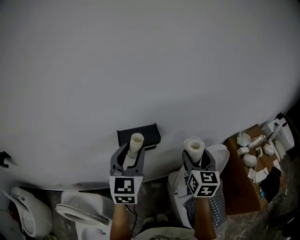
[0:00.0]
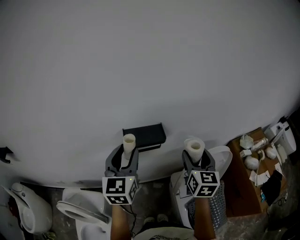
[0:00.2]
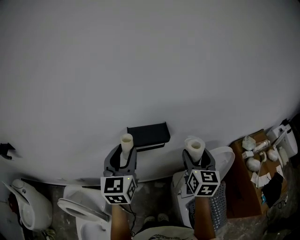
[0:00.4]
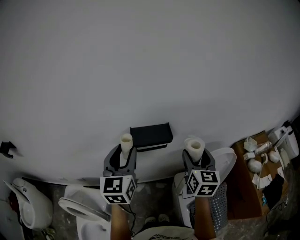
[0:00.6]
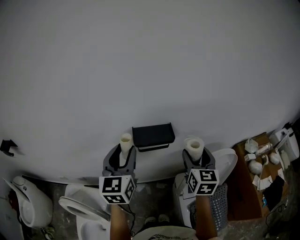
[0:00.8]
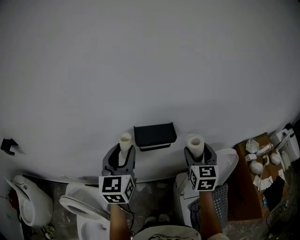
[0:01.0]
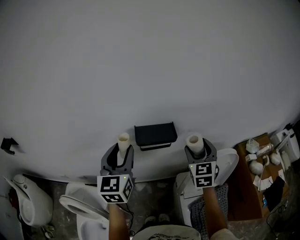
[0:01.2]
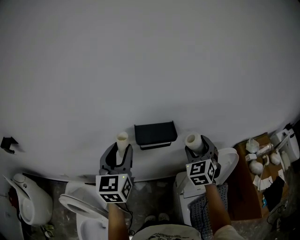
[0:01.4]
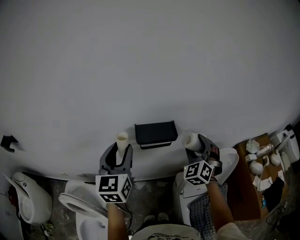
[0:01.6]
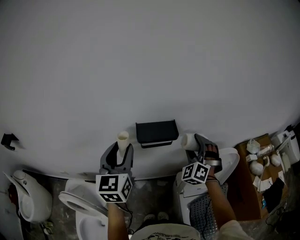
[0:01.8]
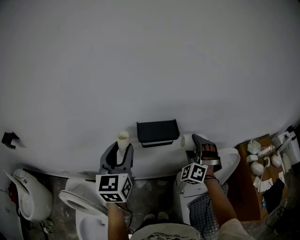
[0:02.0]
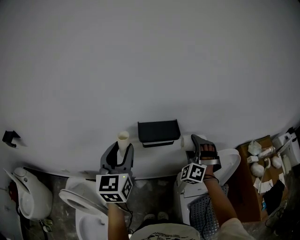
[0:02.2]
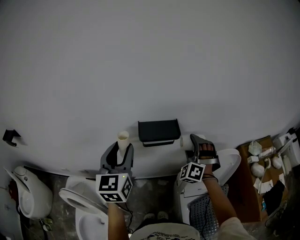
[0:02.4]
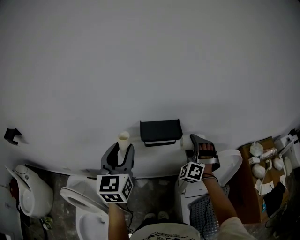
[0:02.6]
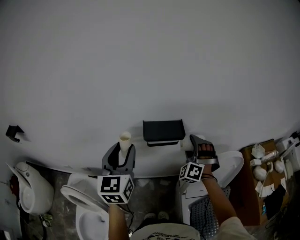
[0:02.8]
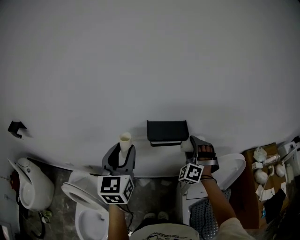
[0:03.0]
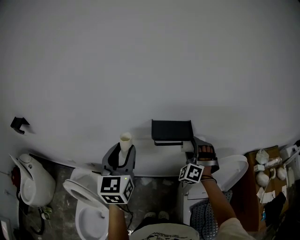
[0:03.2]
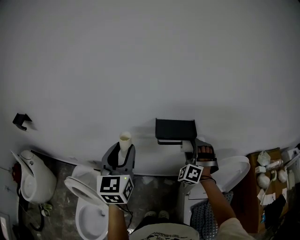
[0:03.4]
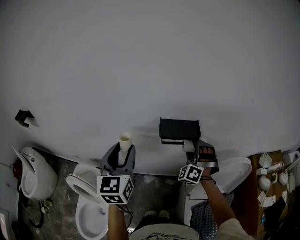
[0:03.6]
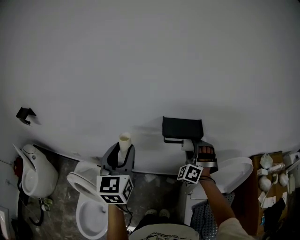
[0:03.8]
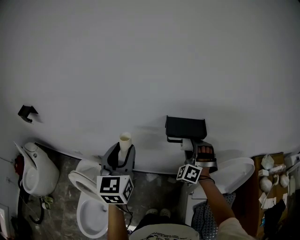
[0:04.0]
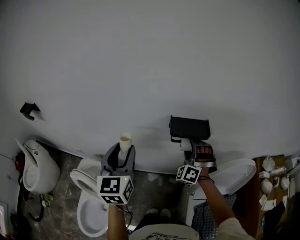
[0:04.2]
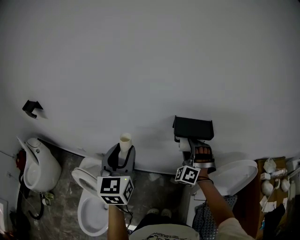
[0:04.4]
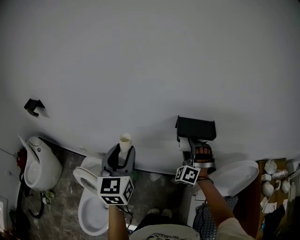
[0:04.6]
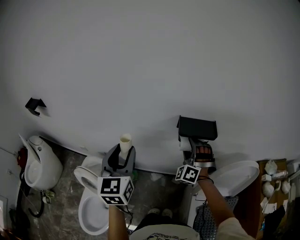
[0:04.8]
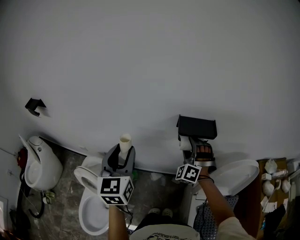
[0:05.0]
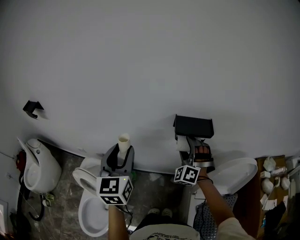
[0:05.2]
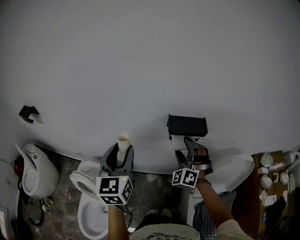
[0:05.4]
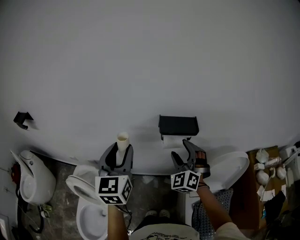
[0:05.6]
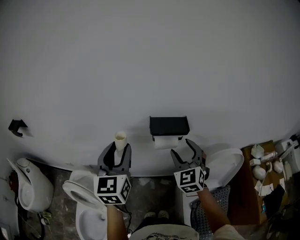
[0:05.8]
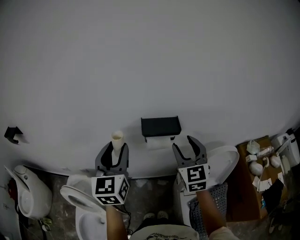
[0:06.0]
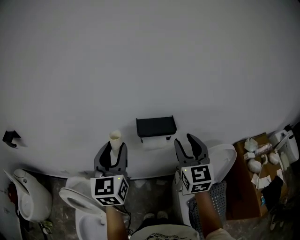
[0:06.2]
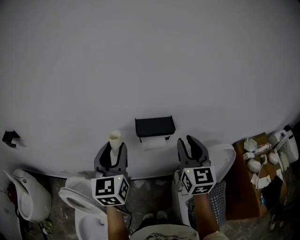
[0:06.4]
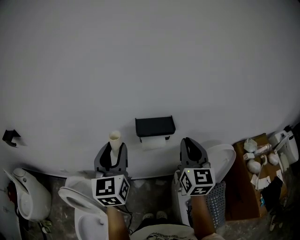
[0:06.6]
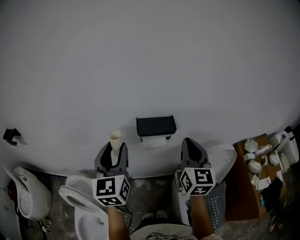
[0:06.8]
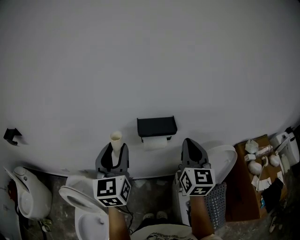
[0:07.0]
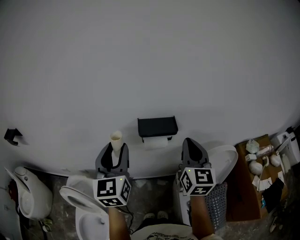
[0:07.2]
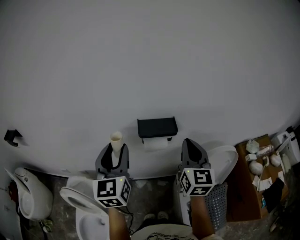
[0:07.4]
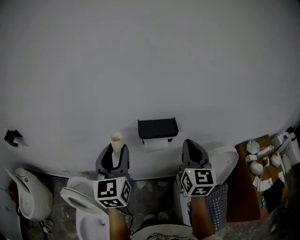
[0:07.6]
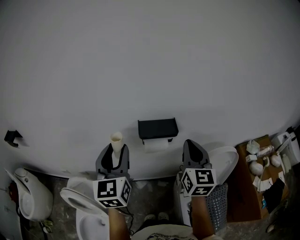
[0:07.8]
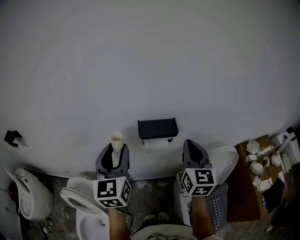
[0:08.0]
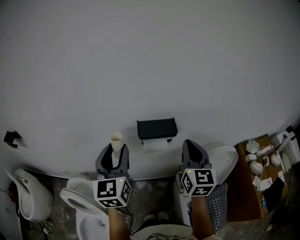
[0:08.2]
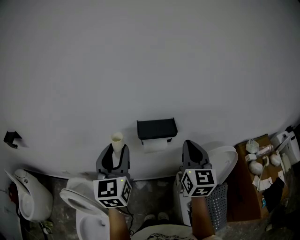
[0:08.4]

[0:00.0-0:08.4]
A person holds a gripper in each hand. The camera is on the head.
0:00.0 to 0:01.4: The right gripper moves to the left, roughly 5 cm, and rotates around the line of its fingers by approximately 40 degrees, counterclockwise from behind; the left gripper moves to the left, roughly 10 cm.
0:01.4 to 0:02.8: The right gripper moves downward, approximately 5 cm, and rolls counterclockwise, seen from behind, by about 40 degrees.
0:02.8 to 0:04.2: Both grippers travel together to the left, about 10 cm.
0:04.2 to 0:05.6: The right gripper shifts approximately 5 cm backward, and changes its angle by roughly 20 degrees.
0:05.6 to 0:07.0: The right gripper is displaced to the right and upward by some 15 cm, rolls clockwise, seen from behind, by approximately 60 degrees, and closes up. Meanwhile the left gripper heads to the right, covering roughly 5 cm.
0:07.0 to 0:08.4: Neither gripper changes place.

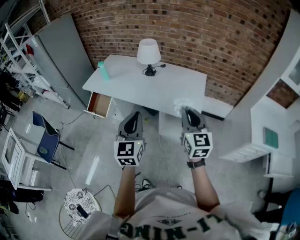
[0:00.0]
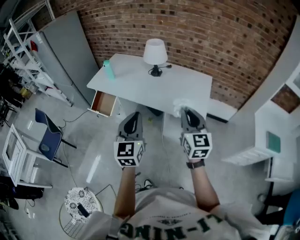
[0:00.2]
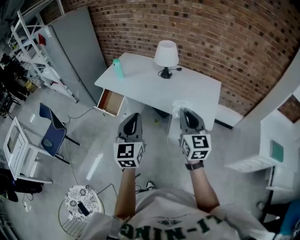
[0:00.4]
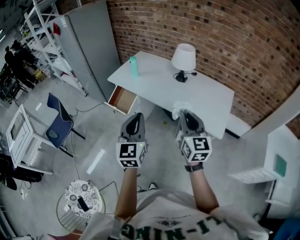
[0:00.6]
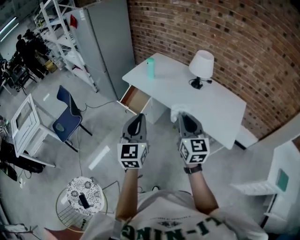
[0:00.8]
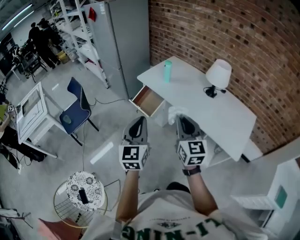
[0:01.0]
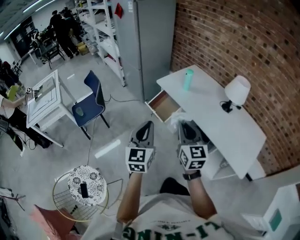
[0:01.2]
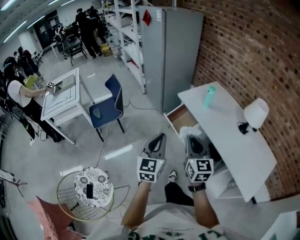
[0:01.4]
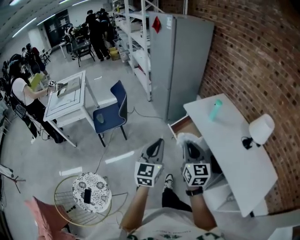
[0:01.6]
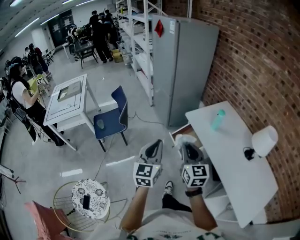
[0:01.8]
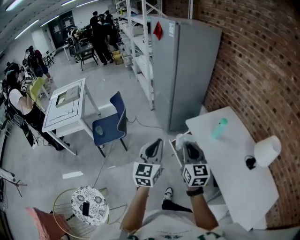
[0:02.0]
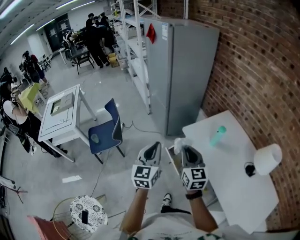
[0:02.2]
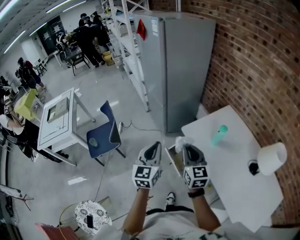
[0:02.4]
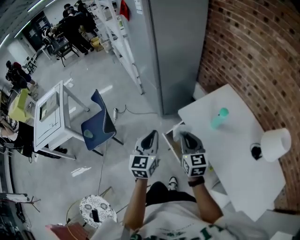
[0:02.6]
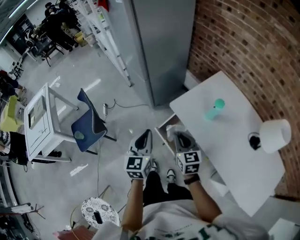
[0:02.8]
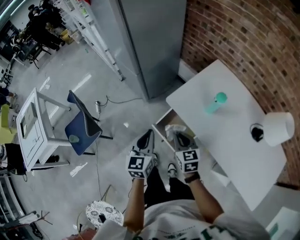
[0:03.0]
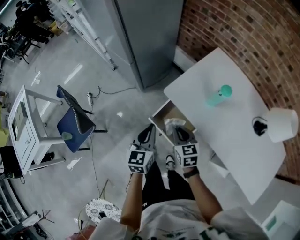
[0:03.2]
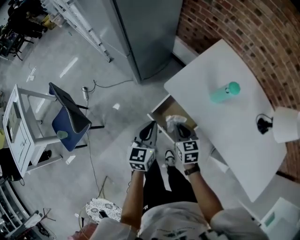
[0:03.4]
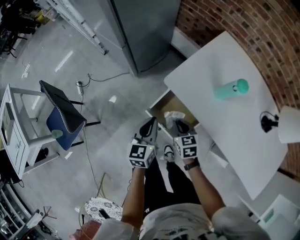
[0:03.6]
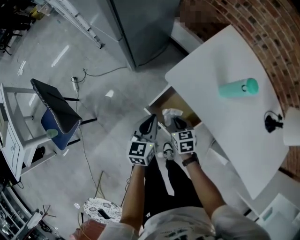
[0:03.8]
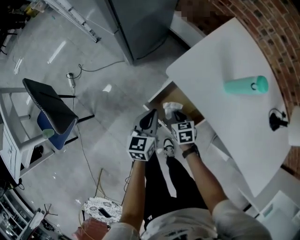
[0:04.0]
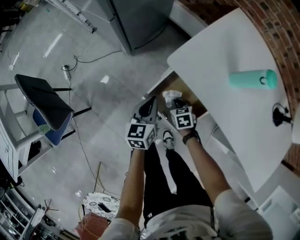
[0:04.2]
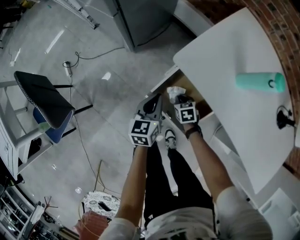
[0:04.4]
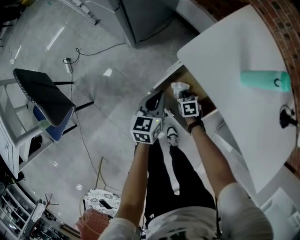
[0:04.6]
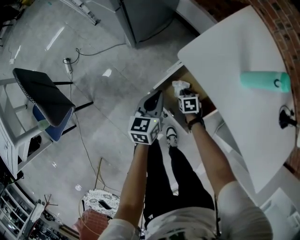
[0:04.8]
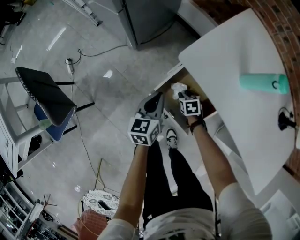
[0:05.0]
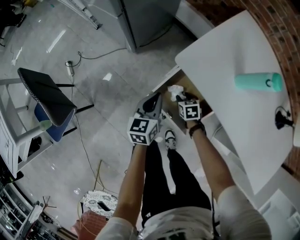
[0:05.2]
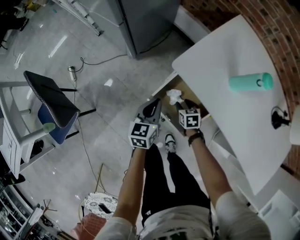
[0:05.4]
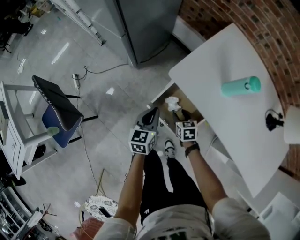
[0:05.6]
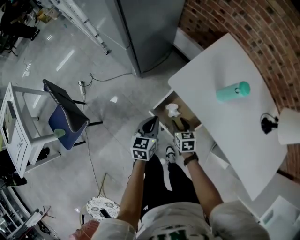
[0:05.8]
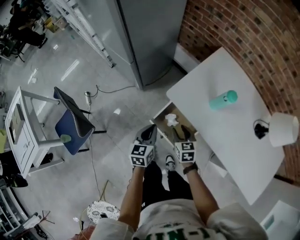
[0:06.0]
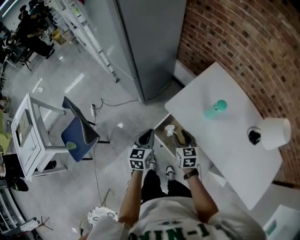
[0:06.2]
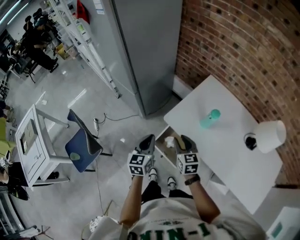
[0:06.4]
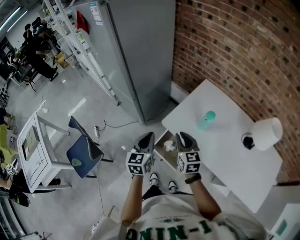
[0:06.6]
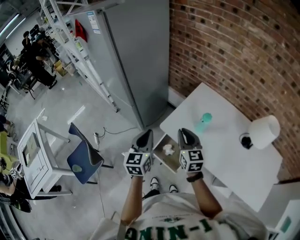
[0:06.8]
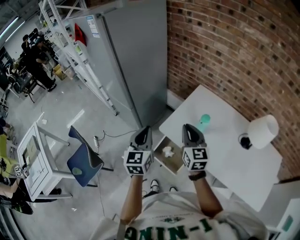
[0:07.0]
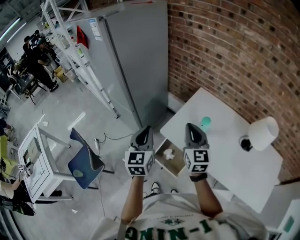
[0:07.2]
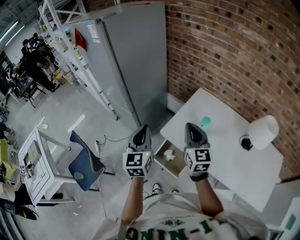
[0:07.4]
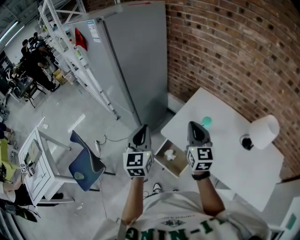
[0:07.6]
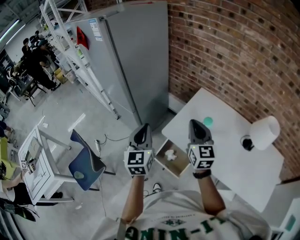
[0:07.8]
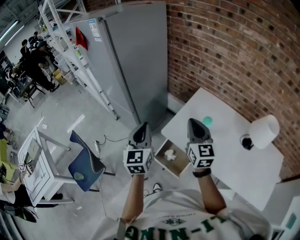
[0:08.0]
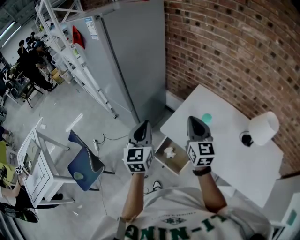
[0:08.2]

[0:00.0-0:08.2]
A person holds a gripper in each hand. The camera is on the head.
0:00.0 to 0:01.6: The two grippers travel together, approximately 50 cm. The right gripper rotates roughly 40 degrees; the left gripper changes its angle by approximately 40 degrees.
0:01.6 to 0:03.2: Both grippers move forward and downward, approximately 50 cm. The left gripper turns by approximately 30 degrees, while the right gripper turns by roughly 30 degrees.
0:03.2 to 0:05.0: The two grippers go about 35 cm downward. The right gripper points its fingers roughly 30 degrees further downward, and opens its fingers.
0:05.0 to 0:06.6: Both grippers move upward, approximately 50 cm. The right gripper tips its fingers upward by some 50 degrees.
0:06.6 to 0:08.2: Both grippers travel together upward, roughly 15 cm.

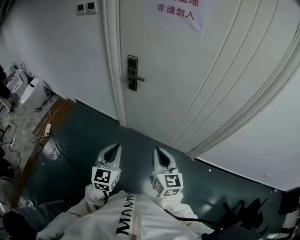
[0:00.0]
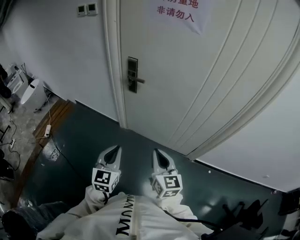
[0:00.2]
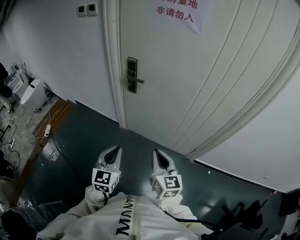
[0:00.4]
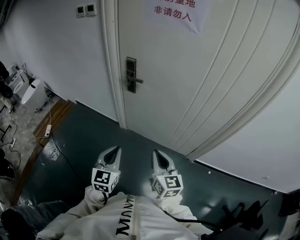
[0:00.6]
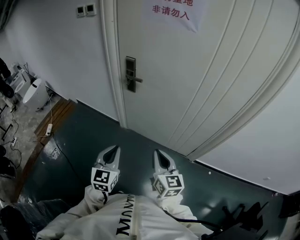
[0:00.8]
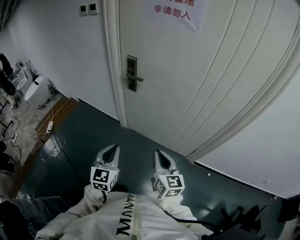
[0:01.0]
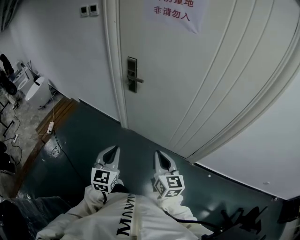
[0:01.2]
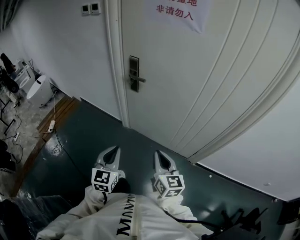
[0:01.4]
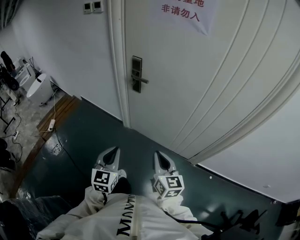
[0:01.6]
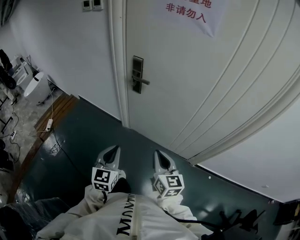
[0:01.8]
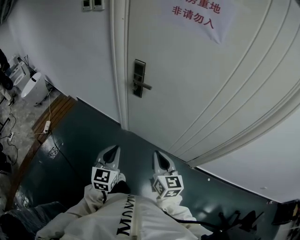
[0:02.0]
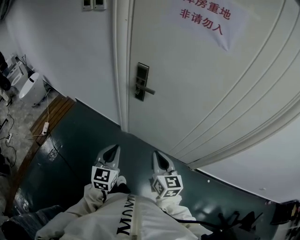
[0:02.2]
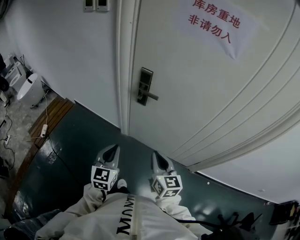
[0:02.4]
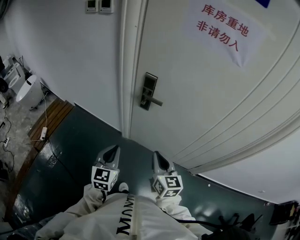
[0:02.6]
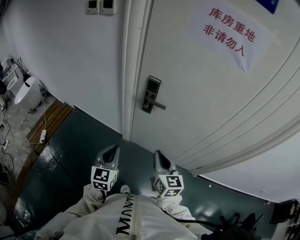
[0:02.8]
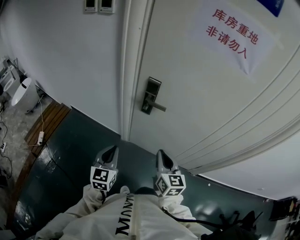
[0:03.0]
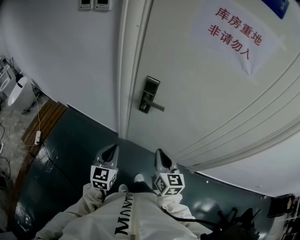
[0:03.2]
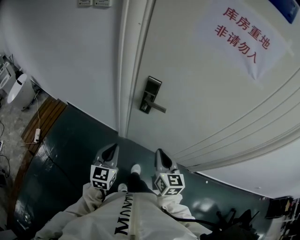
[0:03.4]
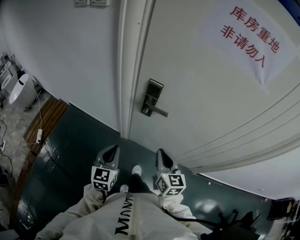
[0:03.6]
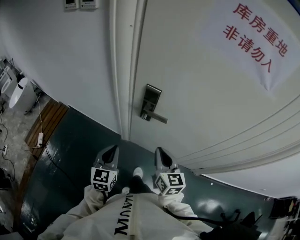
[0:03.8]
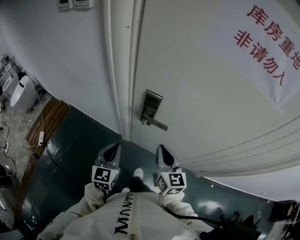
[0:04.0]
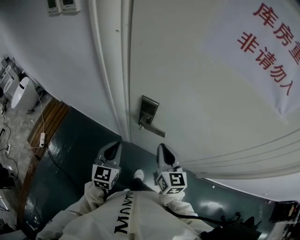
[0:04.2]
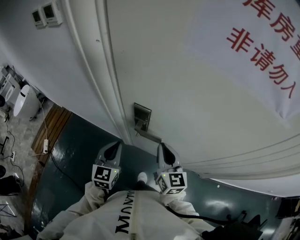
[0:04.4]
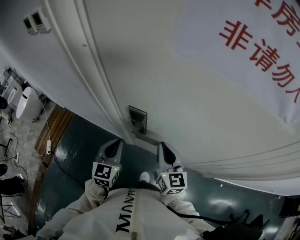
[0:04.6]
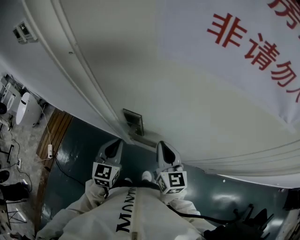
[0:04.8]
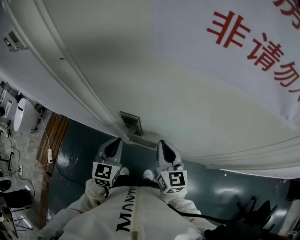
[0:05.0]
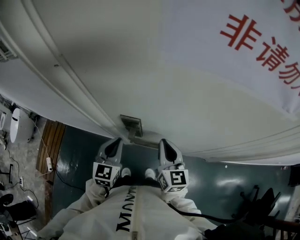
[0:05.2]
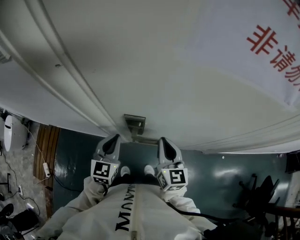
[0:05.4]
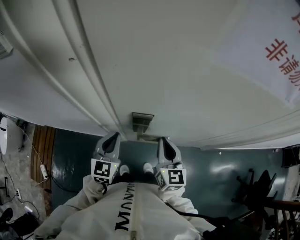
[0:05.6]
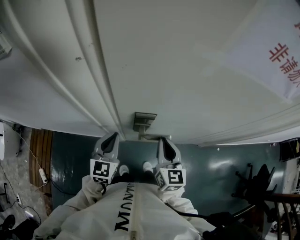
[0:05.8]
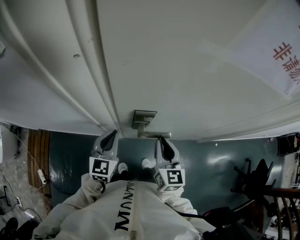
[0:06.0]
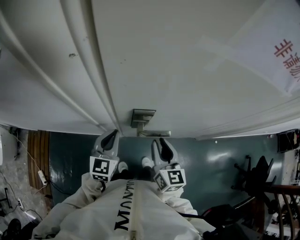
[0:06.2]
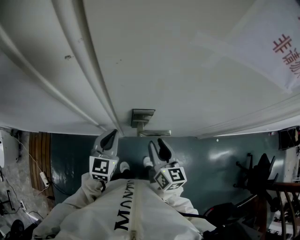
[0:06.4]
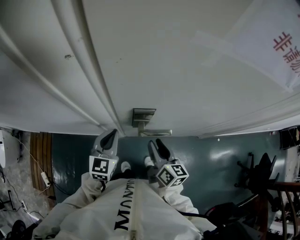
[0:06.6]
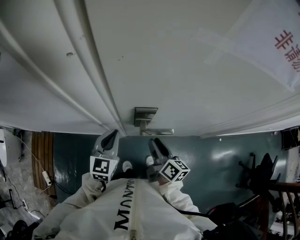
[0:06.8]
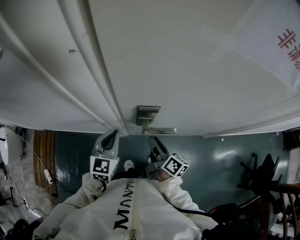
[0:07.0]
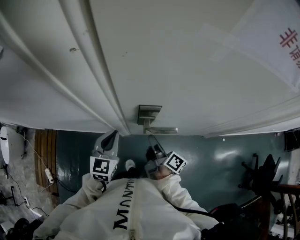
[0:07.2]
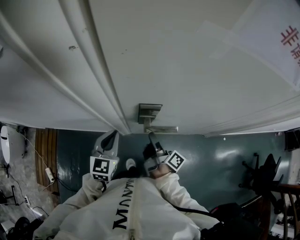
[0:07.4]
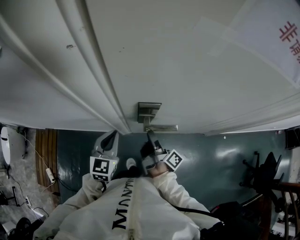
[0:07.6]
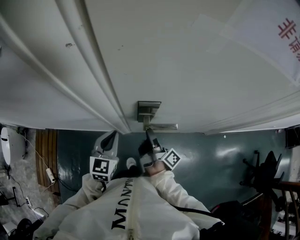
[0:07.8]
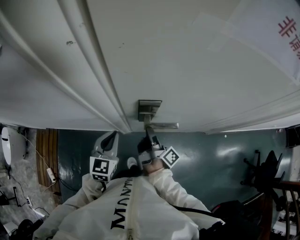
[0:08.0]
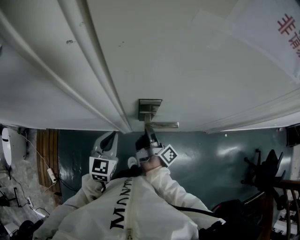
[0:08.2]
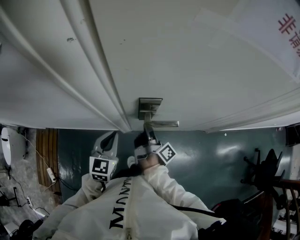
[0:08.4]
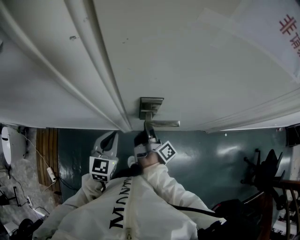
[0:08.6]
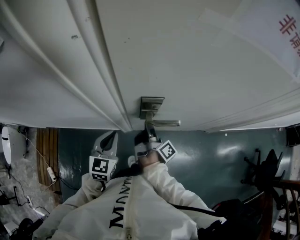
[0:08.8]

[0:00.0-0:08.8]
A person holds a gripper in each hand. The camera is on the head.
0:00.0 to 0:01.4: The grippers move only a little.
0:01.4 to 0:03.0: Both grippers move forward and to the left, about 25 cm.
0:03.0 to 0:04.4: Both grippers move forward, some 20 cm.
0:04.4 to 0:05.8: The right gripper swivels roughly 30 degrees. The left gripper is displaced forward by some 10 cm, and rotates approximately 20 degrees.
0:05.8 to 0:07.4: The right gripper shifts roughly 10 cm downward, rotates around the line of its fingers by roughly 80 degrees, clockwise from behind, and opens up.
0:07.4 to 0:08.8: The right gripper closes up.
